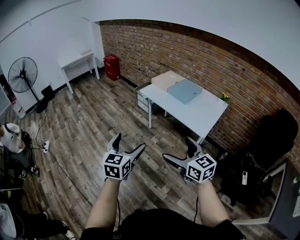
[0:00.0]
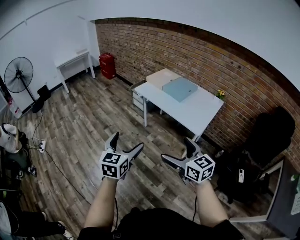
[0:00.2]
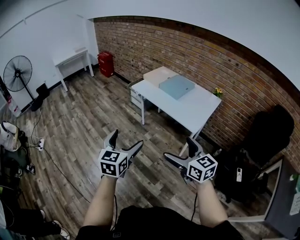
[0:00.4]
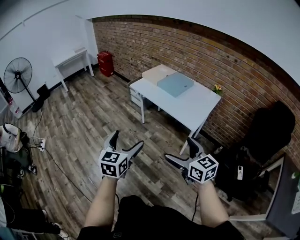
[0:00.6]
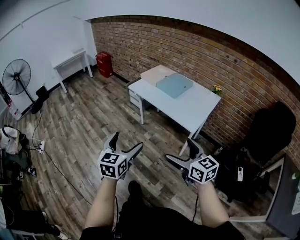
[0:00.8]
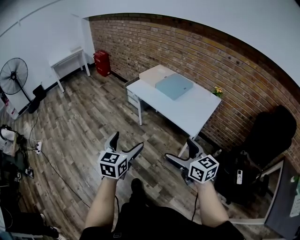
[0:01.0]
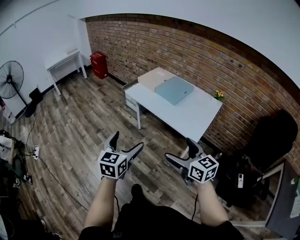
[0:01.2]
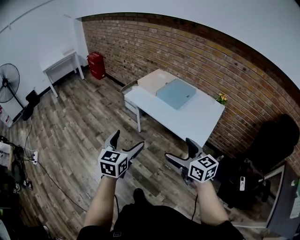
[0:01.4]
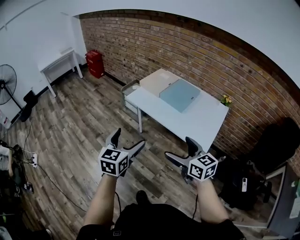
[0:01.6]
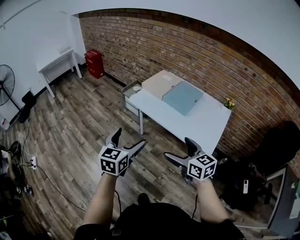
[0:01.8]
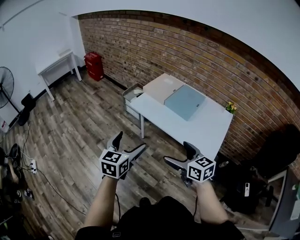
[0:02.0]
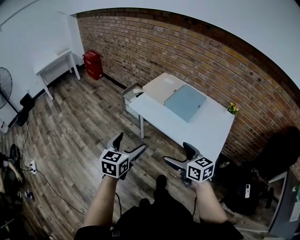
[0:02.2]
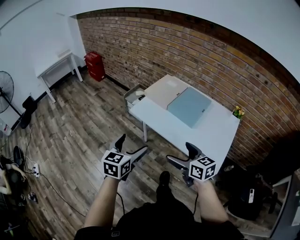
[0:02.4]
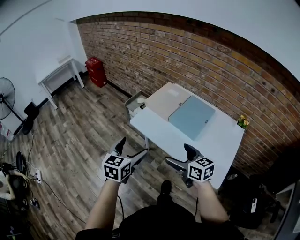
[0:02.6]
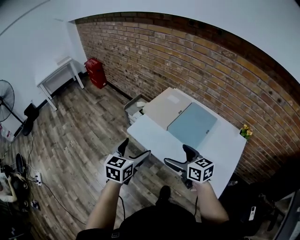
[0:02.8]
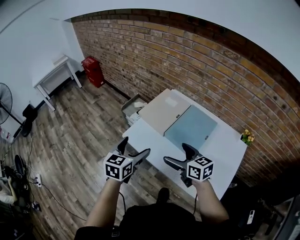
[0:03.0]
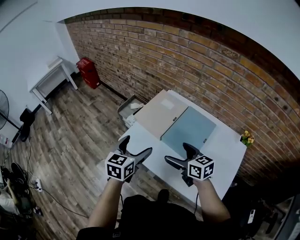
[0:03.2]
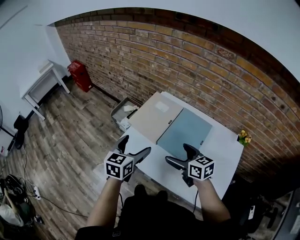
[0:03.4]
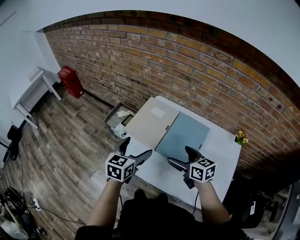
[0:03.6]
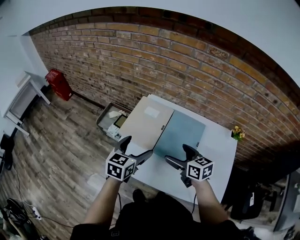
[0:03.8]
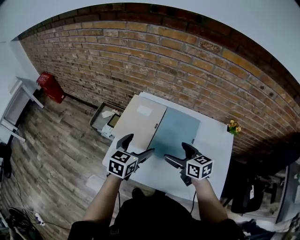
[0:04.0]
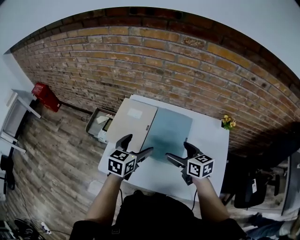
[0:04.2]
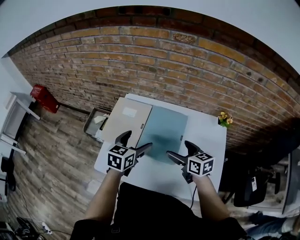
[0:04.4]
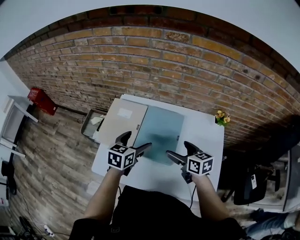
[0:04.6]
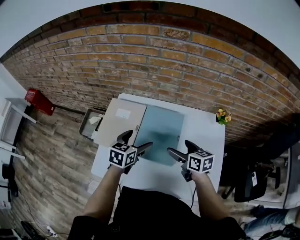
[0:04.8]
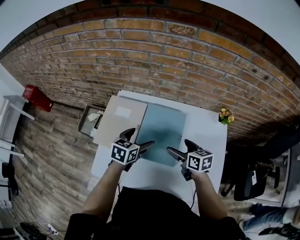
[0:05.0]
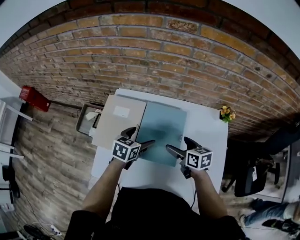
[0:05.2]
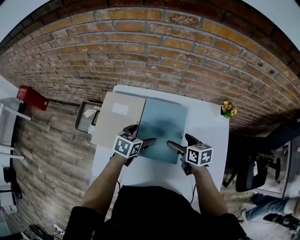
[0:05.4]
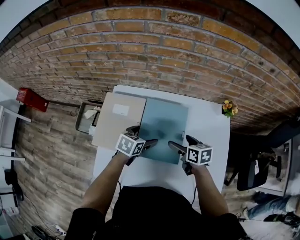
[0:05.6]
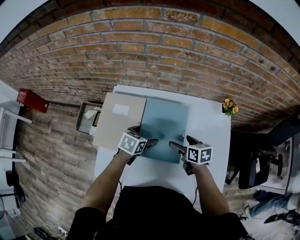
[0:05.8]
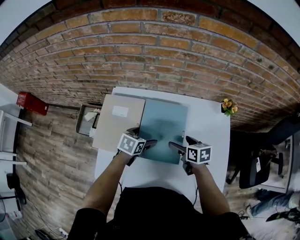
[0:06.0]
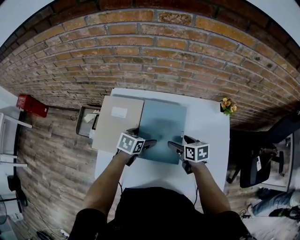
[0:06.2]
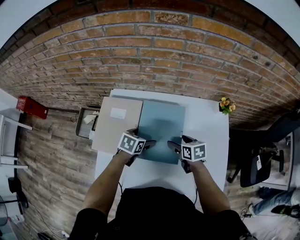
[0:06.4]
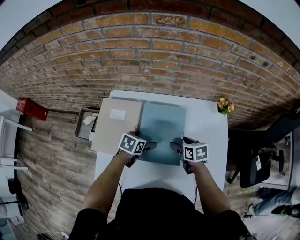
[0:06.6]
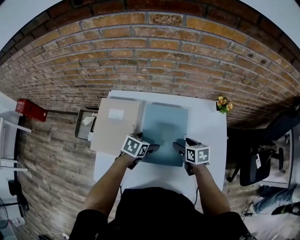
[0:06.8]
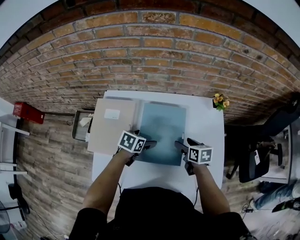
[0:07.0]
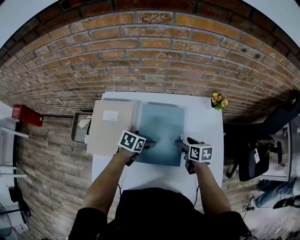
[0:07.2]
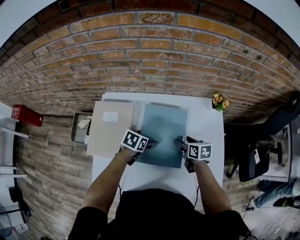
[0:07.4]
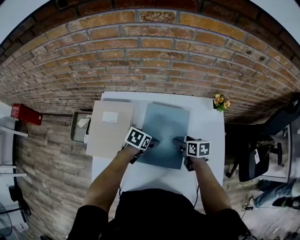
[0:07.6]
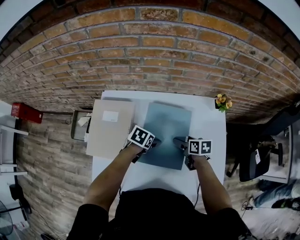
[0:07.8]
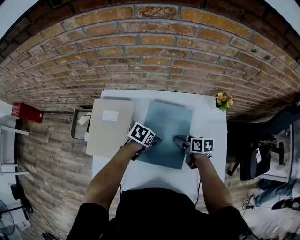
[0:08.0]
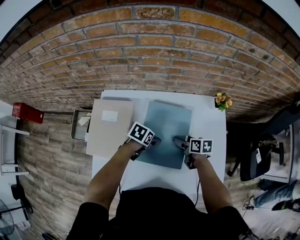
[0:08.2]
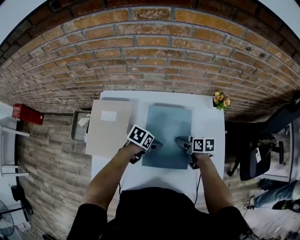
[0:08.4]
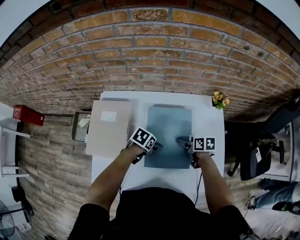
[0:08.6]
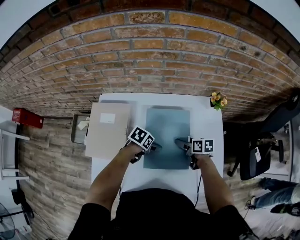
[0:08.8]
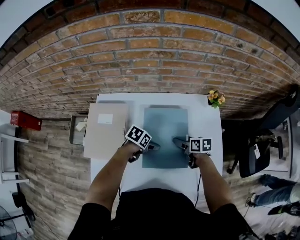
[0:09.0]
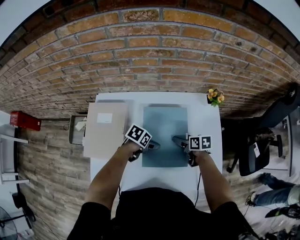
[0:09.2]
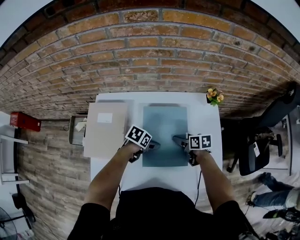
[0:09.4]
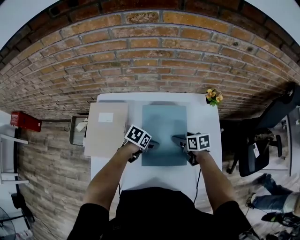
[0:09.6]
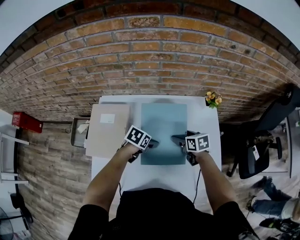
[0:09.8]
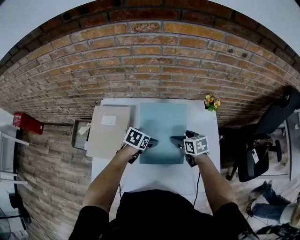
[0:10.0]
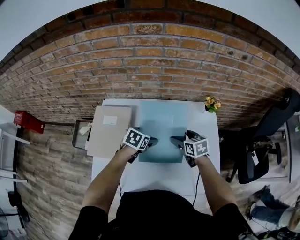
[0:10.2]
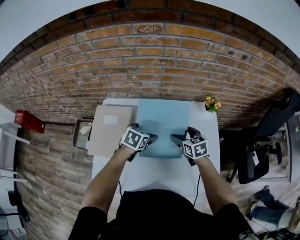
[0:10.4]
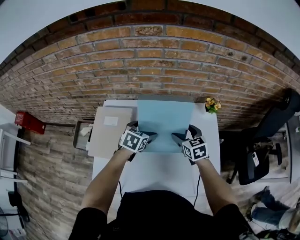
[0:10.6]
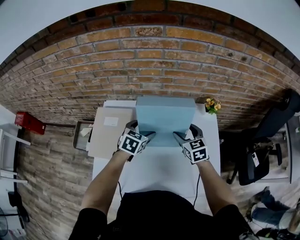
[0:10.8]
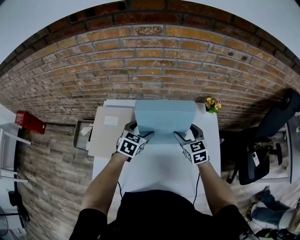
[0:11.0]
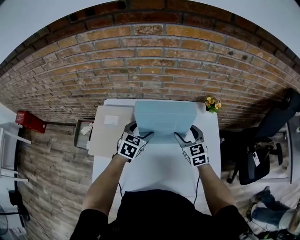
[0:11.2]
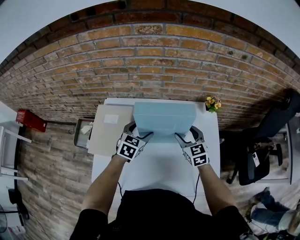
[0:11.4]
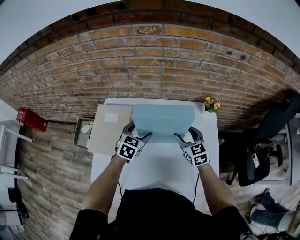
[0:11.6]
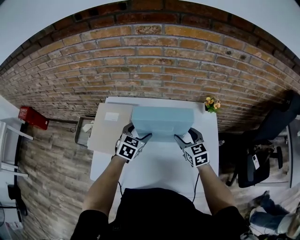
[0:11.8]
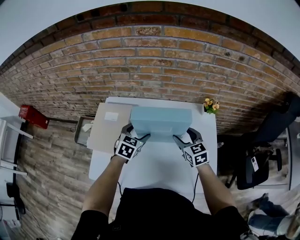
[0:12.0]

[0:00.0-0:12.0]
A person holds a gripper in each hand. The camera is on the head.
0:00.0 to 0:01.6: The grippers both shift forward by some 20 cm.
0:01.6 to 0:03.0: The grippers both shift forward by roughly 35 cm.
0:03.0 to 0:04.4: The right gripper shifts by roughly 20 cm, and changes its angle by approximately 30 degrees. The left gripper ends up approximately 25 cm from where it was, and changes its angle by some 30 degrees.
0:04.4 to 0:06.0: The two grippers go roughly 15 cm downward and forward. The left gripper changes its angle by approximately 30 degrees. Meanwhile the right gripper changes its angle by some 20 degrees.
0:06.0 to 0:07.6: Both grippers travel together to the right, about 5 cm.
0:07.6 to 0:09.0: There are only small adjustments of the grippers.
0:09.0 to 0:10.4: The grippers both shift upward by about 10 cm. The left gripper turns by roughly 30 degrees. Meanwhile the right gripper swivels roughly 40 degrees.

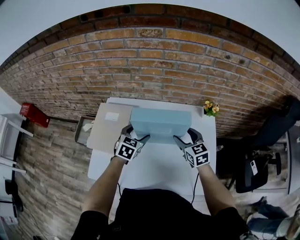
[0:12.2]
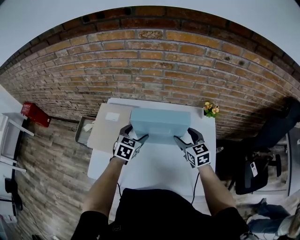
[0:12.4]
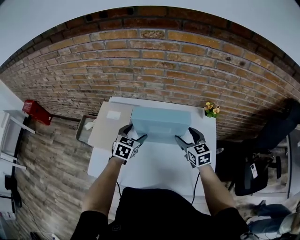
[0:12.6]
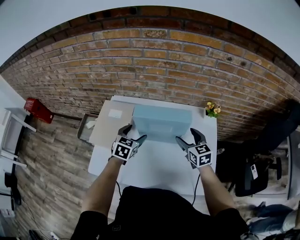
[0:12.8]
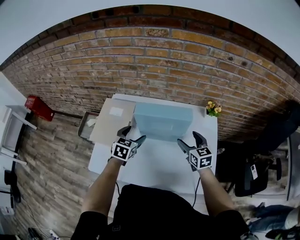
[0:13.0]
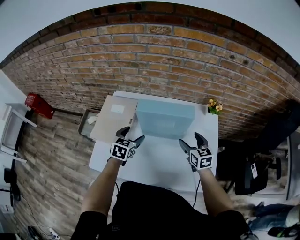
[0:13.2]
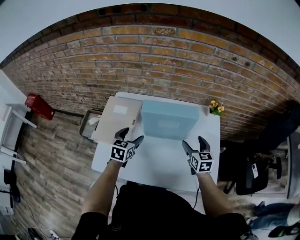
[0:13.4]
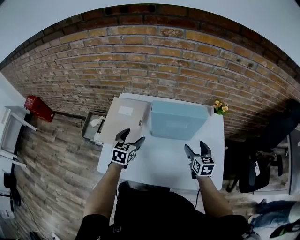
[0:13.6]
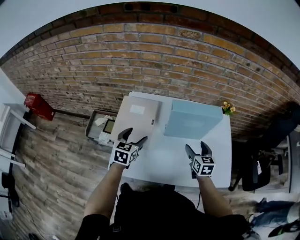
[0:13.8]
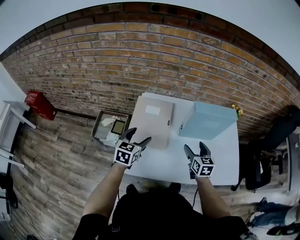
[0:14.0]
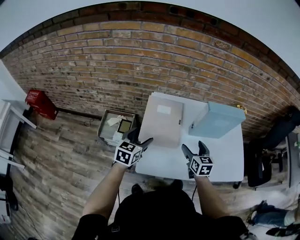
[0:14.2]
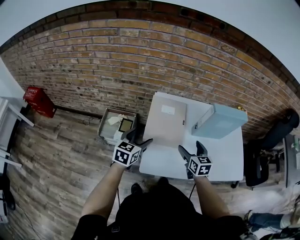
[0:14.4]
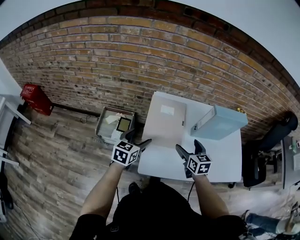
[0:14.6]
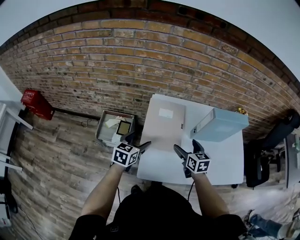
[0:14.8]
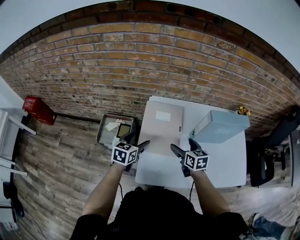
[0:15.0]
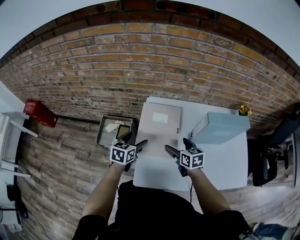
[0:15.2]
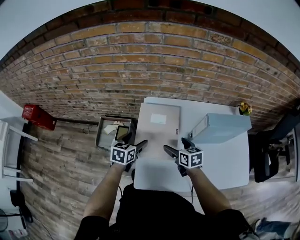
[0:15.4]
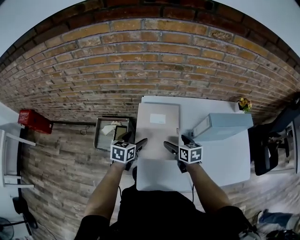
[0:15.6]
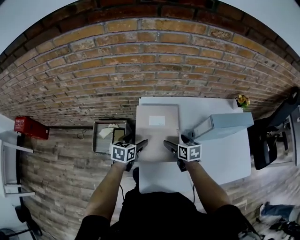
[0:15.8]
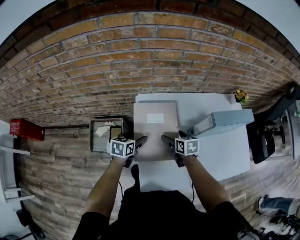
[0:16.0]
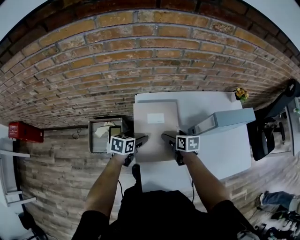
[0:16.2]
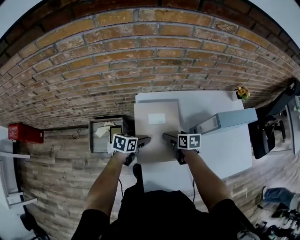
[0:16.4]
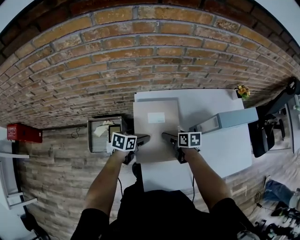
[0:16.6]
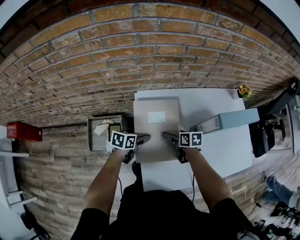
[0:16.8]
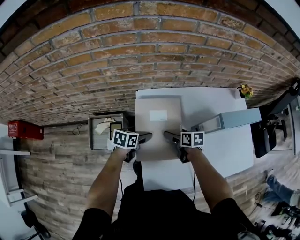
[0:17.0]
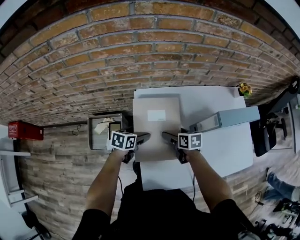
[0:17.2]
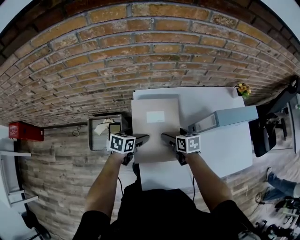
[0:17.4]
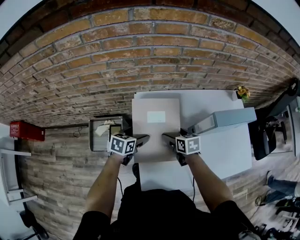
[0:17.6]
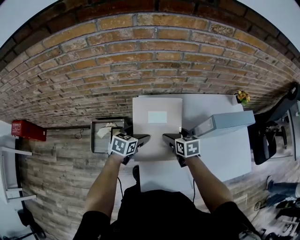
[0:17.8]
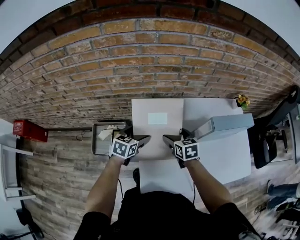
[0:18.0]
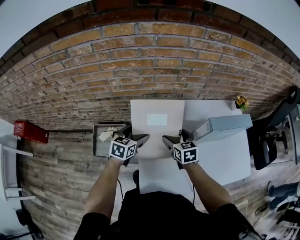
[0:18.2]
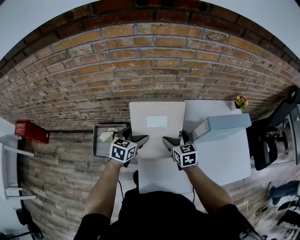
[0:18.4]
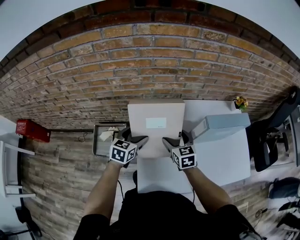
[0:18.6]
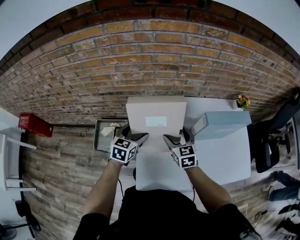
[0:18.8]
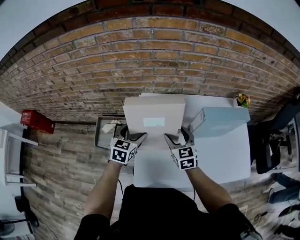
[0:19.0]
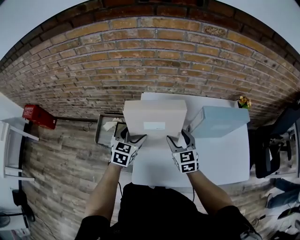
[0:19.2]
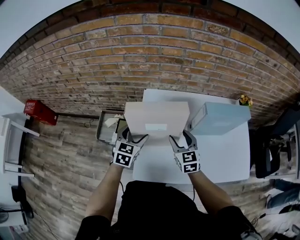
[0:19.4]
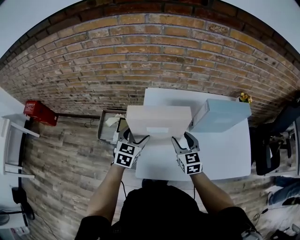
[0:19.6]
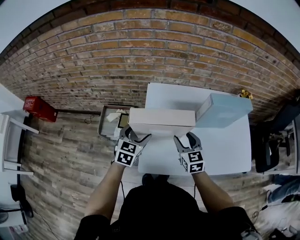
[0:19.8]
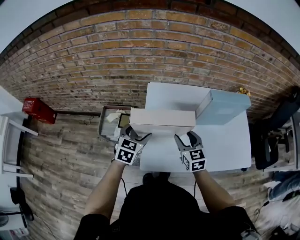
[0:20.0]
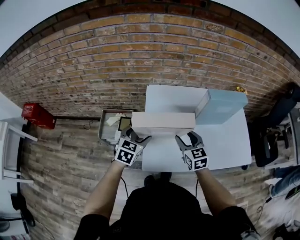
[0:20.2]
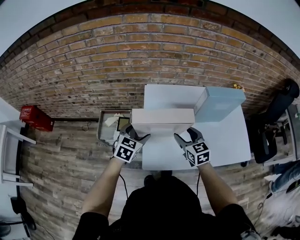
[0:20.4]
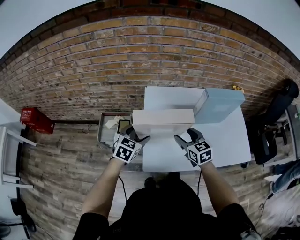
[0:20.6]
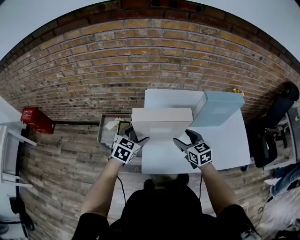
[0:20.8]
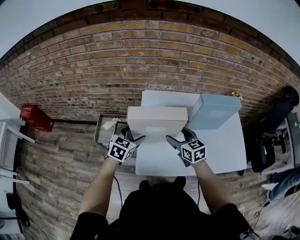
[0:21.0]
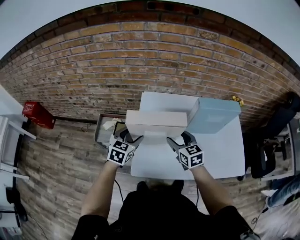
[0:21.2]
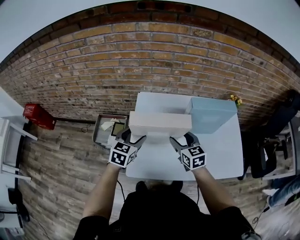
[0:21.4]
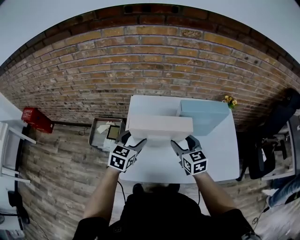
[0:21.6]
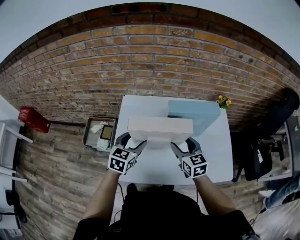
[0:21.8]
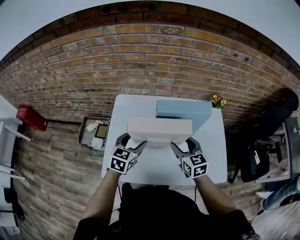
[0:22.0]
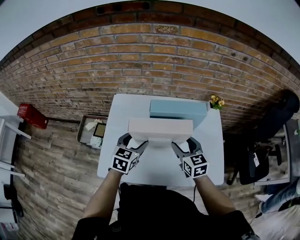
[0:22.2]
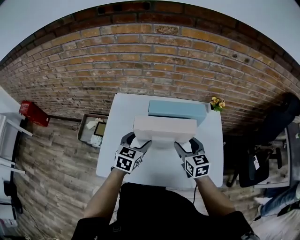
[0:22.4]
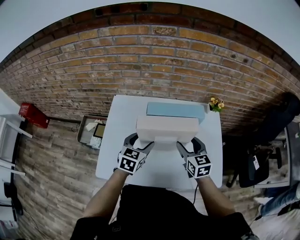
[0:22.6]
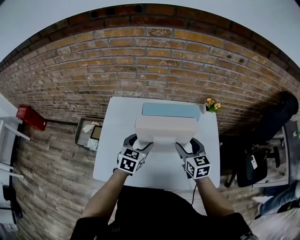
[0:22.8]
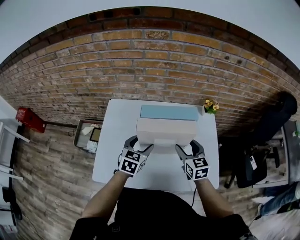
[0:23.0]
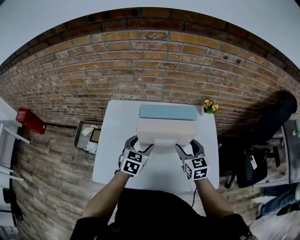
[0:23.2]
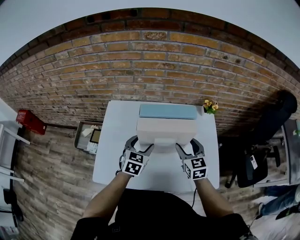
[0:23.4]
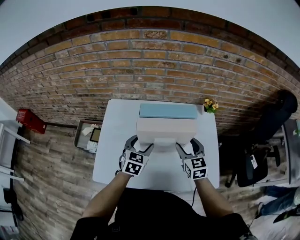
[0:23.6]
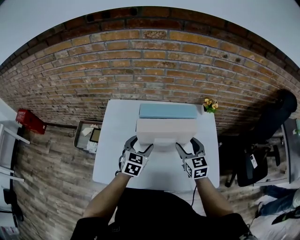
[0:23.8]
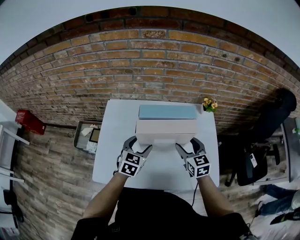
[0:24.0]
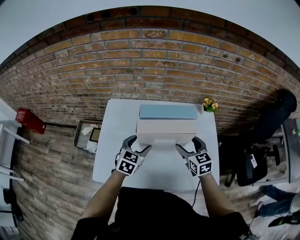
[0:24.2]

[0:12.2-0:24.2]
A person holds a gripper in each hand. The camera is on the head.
0:12.2 to 0:13.8: The right gripper goes some 10 cm backward and to the left, and rotates about 20 degrees. Meanwhile the left gripper heads to the left and backward, covering approximately 15 cm.
0:13.8 to 0:15.2: The left gripper travels to the left by roughly 15 cm; the right gripper moves to the left, roughly 25 cm, and changes its angle by approximately 20 degrees.
0:15.2 to 0:16.6: The grippers both shift downward and forward by about 10 cm. The right gripper swivels approximately 30 degrees. The left gripper changes its angle by about 30 degrees.
0:16.6 to 0:18.2: Both grippers move upward, about 10 cm. The left gripper turns by some 20 degrees, while the right gripper changes its angle by some 30 degrees.
0:18.2 to 0:19.8: The grippers both shift backward by roughly 15 cm.
0:19.8 to 0:21.2: The grippers move only a little.
0:21.2 to 0:22.6: Both grippers travel together to the right, roughly 25 cm.
0:22.6 to 0:24.2: The grippers make only small movements.
